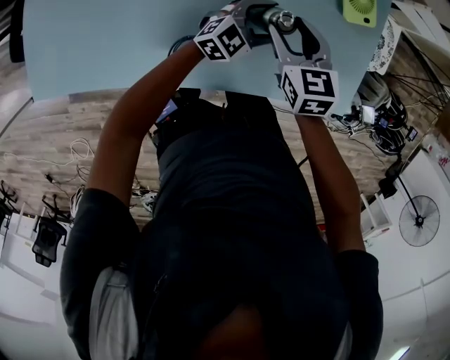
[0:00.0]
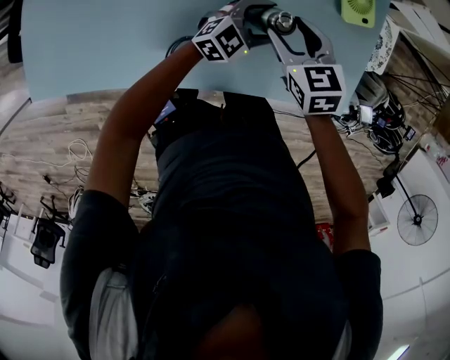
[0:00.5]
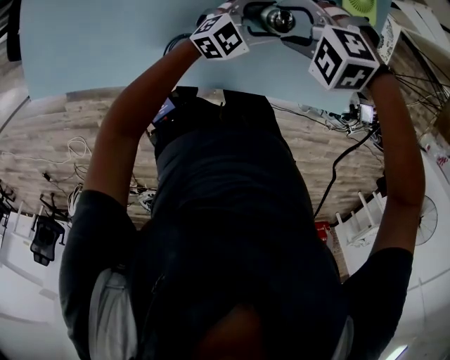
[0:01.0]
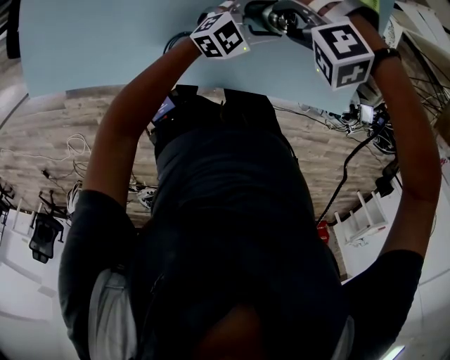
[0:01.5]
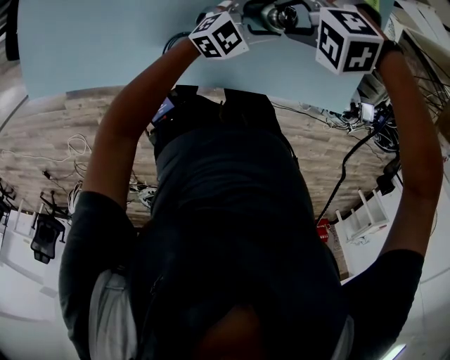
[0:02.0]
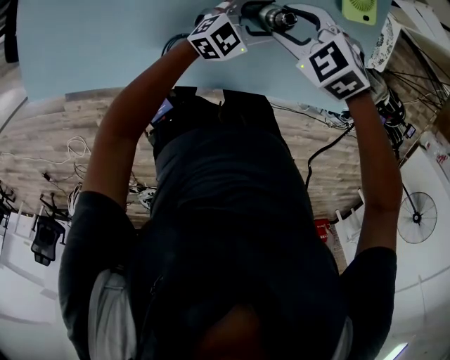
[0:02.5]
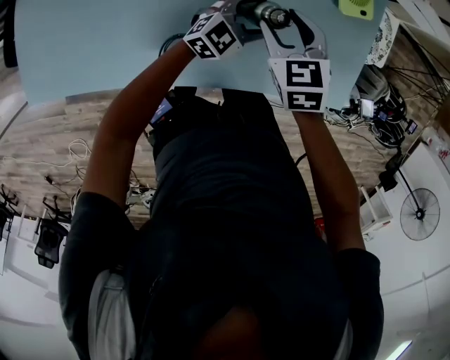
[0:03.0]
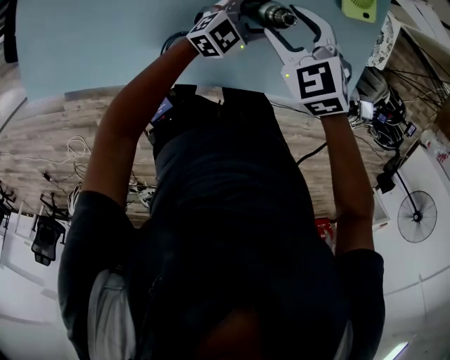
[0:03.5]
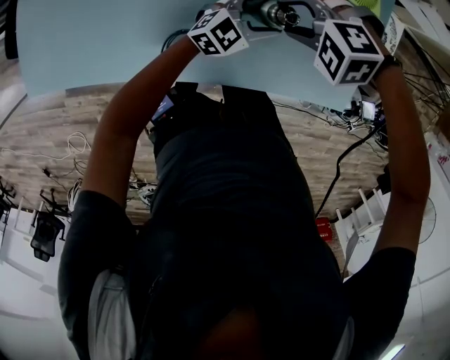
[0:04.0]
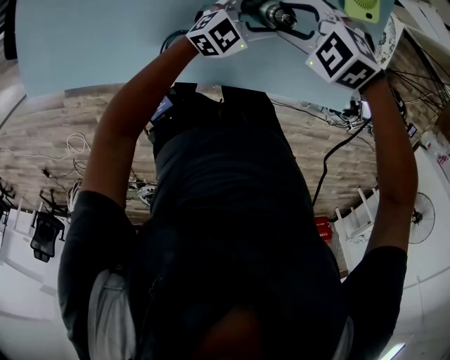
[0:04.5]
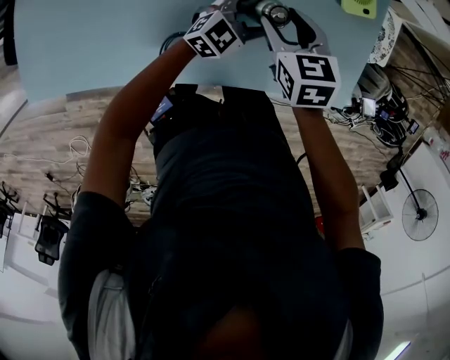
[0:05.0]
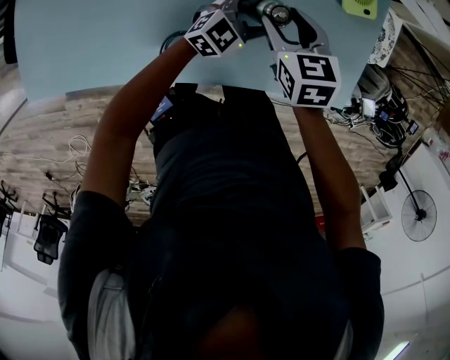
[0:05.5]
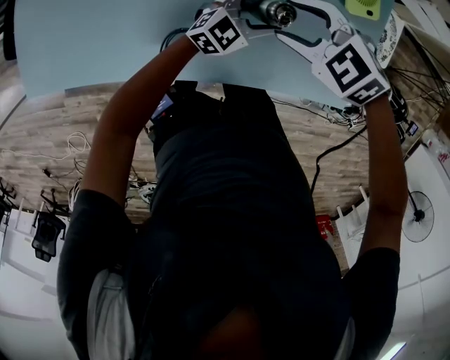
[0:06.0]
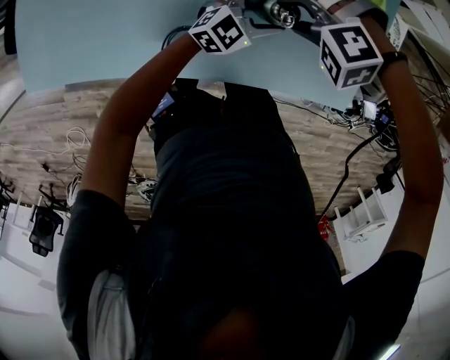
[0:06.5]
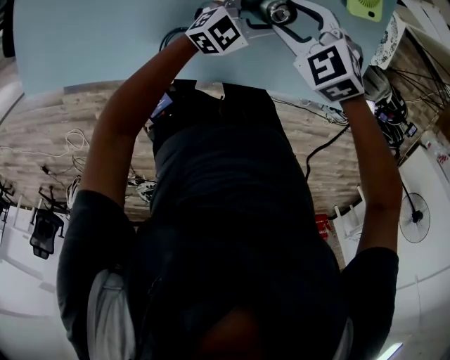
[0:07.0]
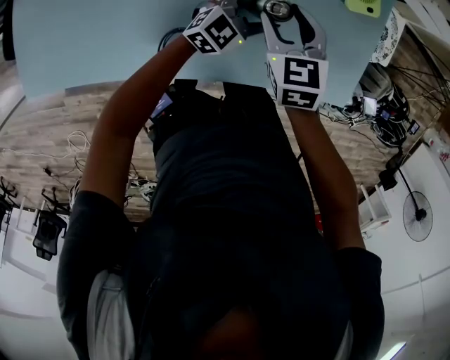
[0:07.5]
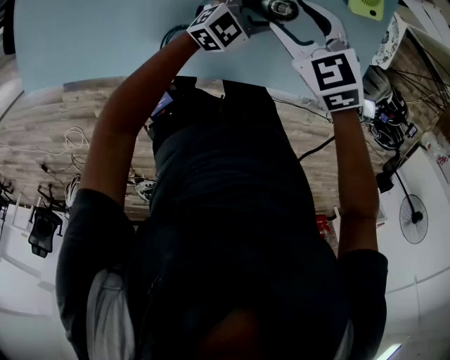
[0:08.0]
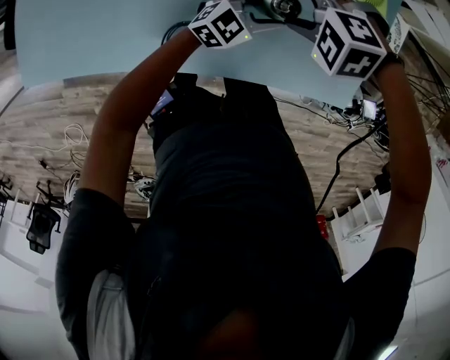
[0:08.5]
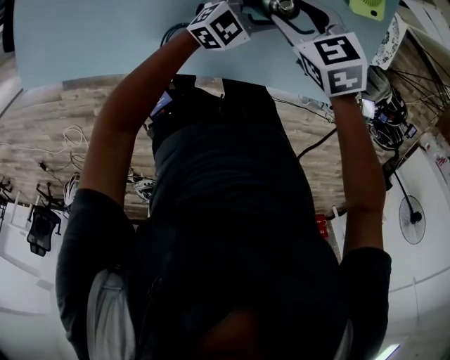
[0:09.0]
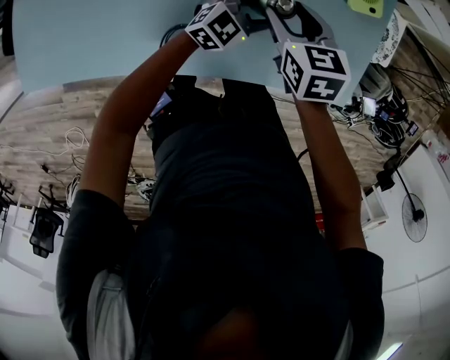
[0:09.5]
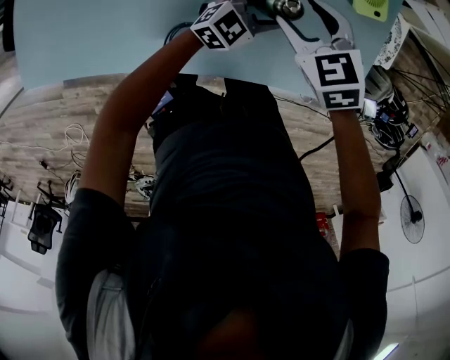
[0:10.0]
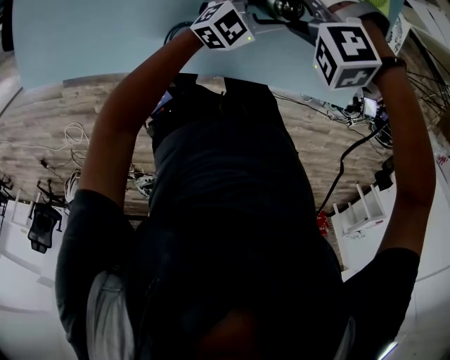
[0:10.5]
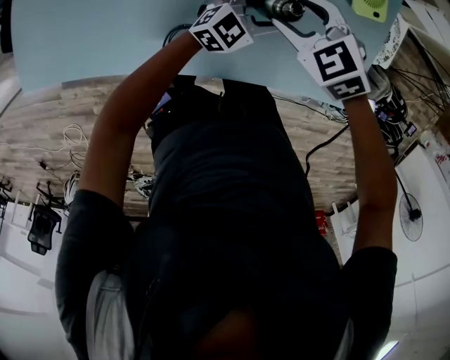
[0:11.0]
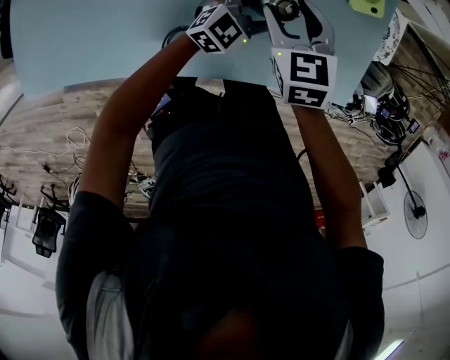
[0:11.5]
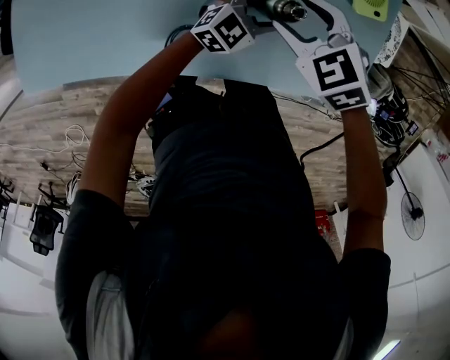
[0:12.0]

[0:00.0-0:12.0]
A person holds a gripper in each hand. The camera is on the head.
0:00.0 to 0:02.0: The right gripper points its fingers approximately 30 degrees further downward.
0:04.0 to 0:06.0: The right gripper changes its angle by approximately 40 degrees.
0:06.0 to 0:08.0: The right gripper turns by roughly 30 degrees.

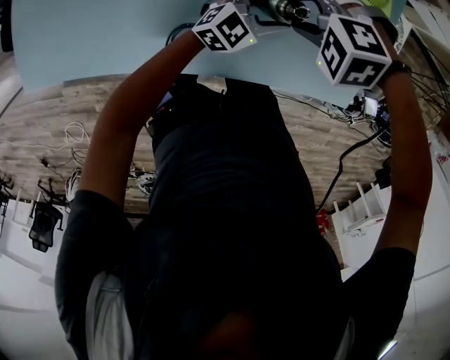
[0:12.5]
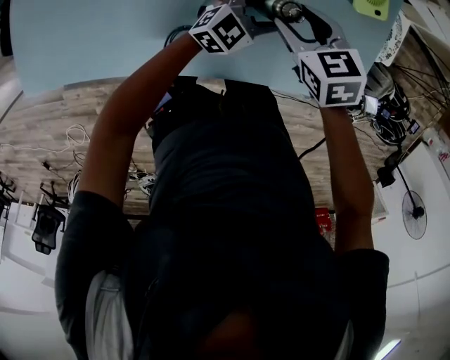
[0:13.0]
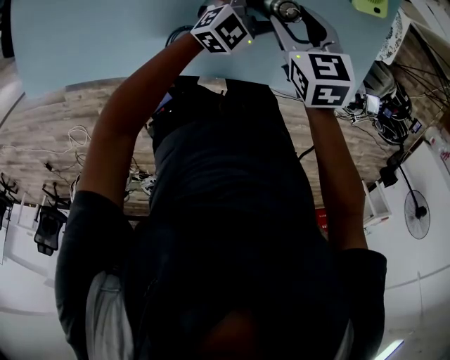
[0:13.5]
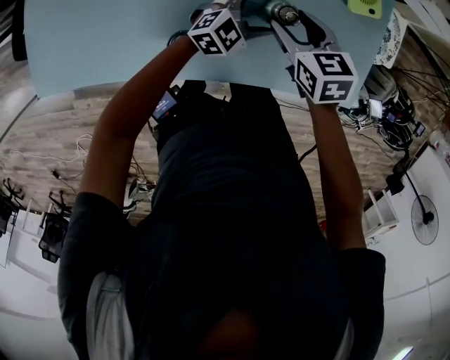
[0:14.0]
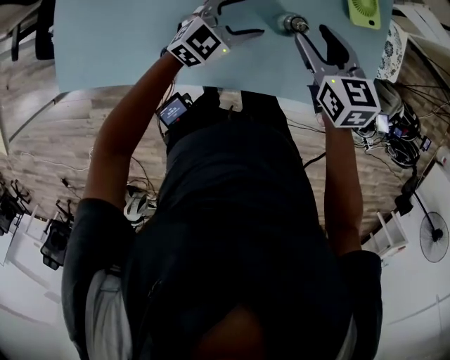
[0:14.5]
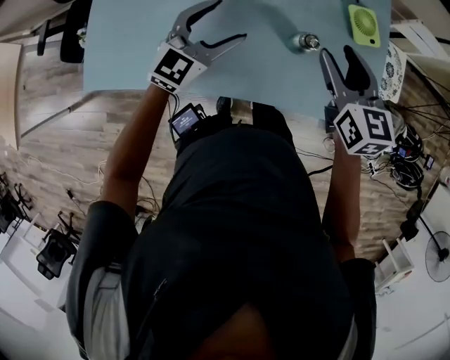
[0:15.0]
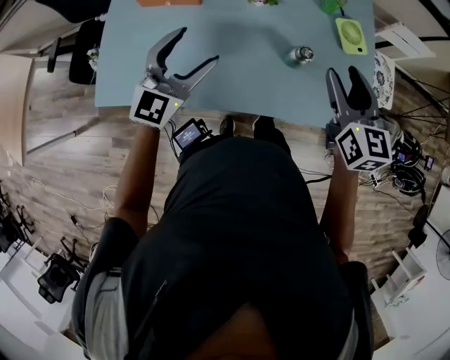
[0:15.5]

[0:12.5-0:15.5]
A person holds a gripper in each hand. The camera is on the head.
0:12.5 to 0:14.0: The right gripper twists about 70 degrees clockwise, seen from behind.
0:14.0 to 0:15.5: The left gripper shifts approximately 40 cm upward, to the left and backward, and changes its angle by some 40 degrees, while the right gripper moves upward, approximately 25 cm, and swivels approximately 30 degrees.

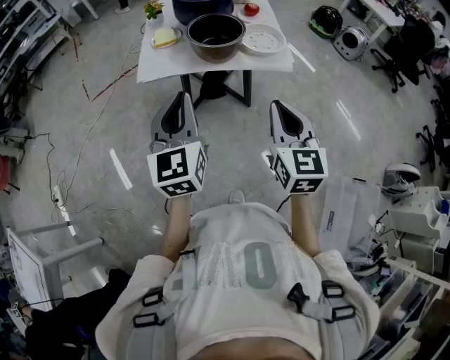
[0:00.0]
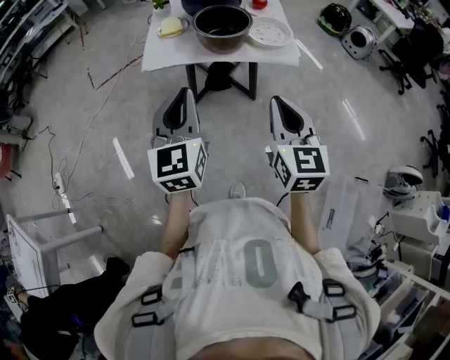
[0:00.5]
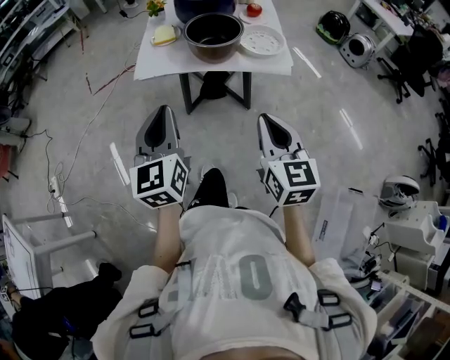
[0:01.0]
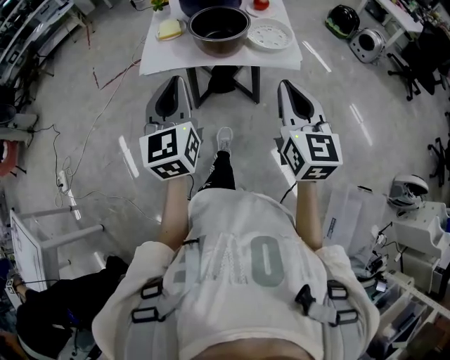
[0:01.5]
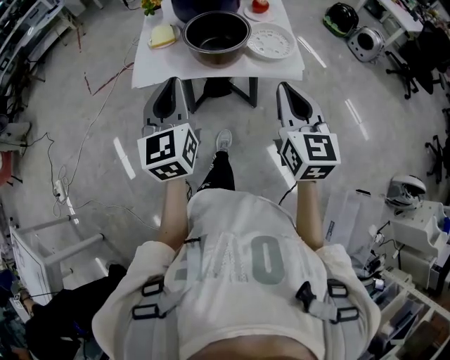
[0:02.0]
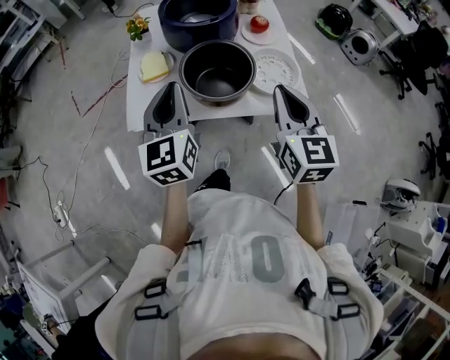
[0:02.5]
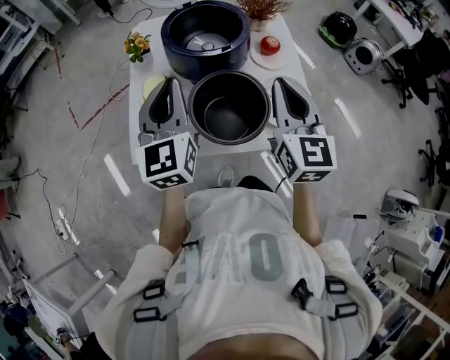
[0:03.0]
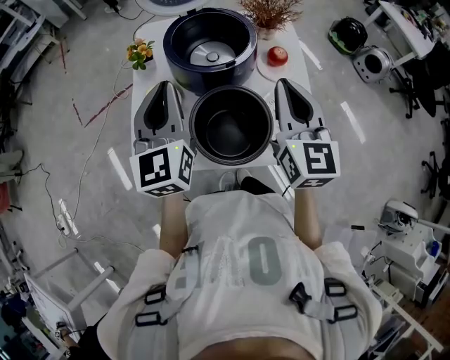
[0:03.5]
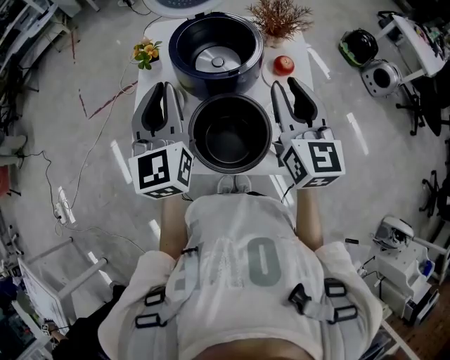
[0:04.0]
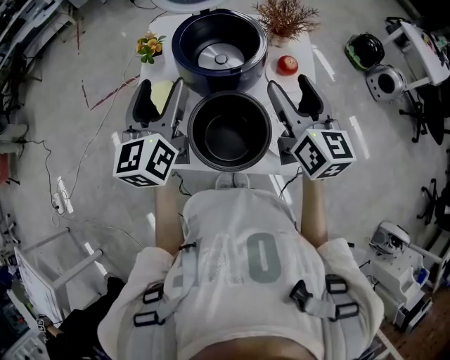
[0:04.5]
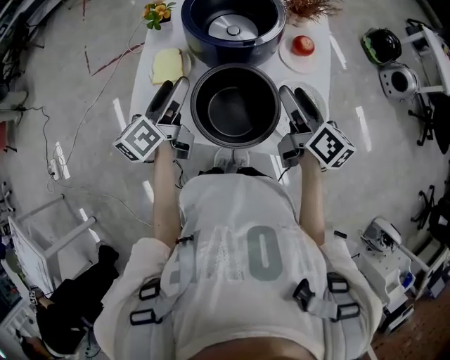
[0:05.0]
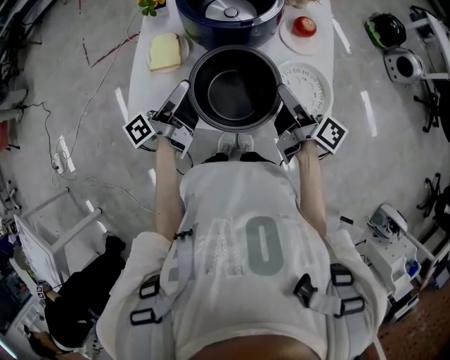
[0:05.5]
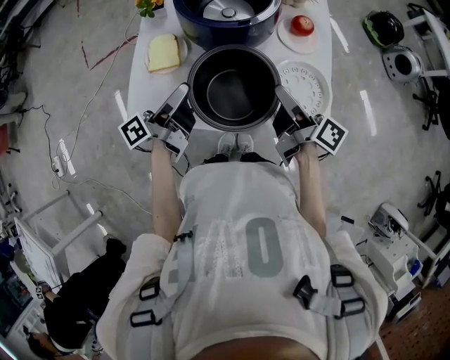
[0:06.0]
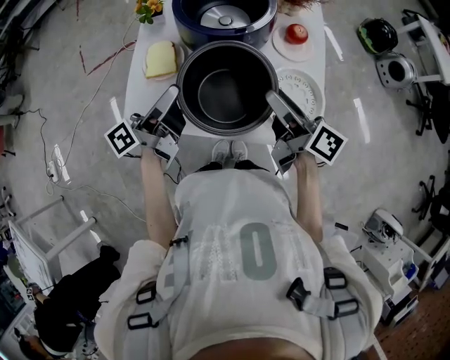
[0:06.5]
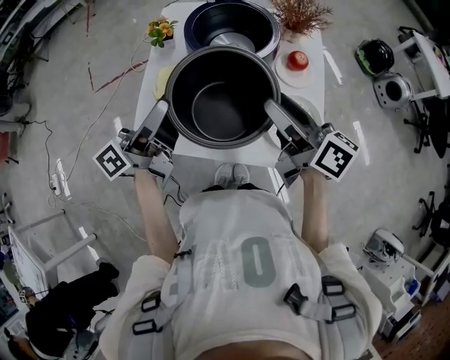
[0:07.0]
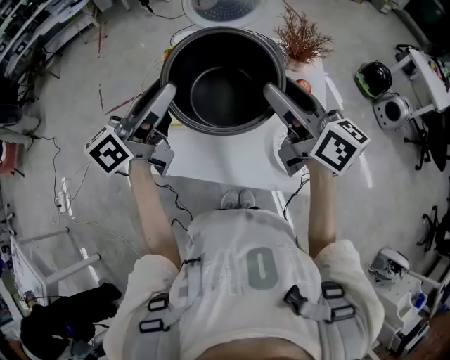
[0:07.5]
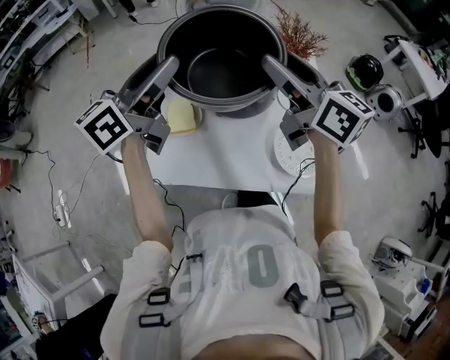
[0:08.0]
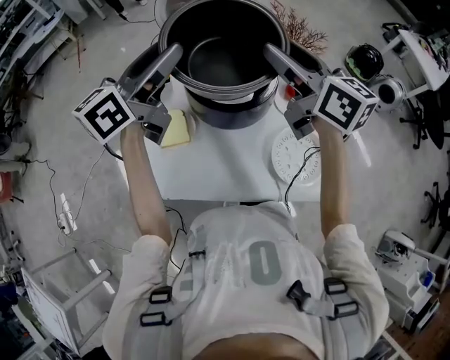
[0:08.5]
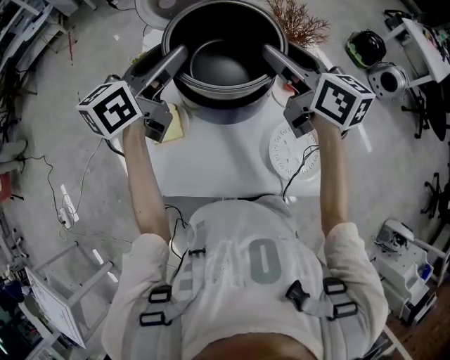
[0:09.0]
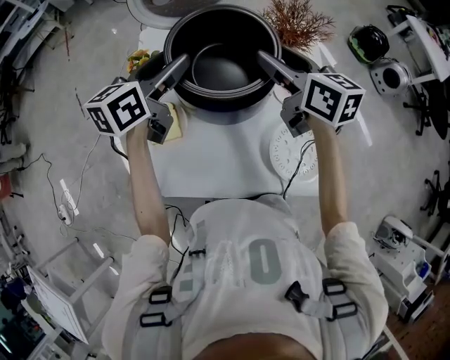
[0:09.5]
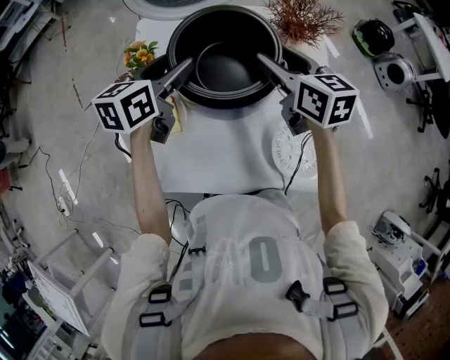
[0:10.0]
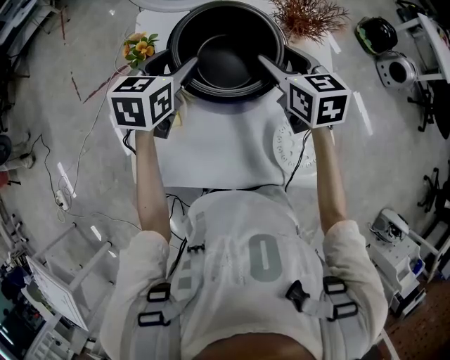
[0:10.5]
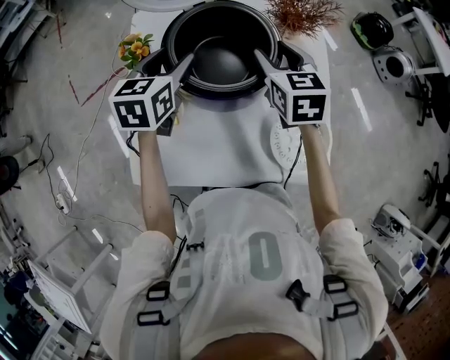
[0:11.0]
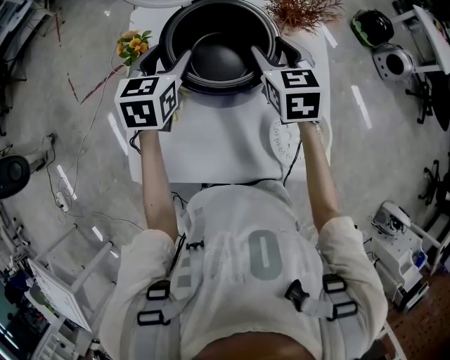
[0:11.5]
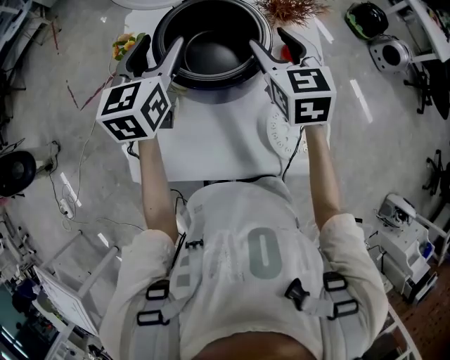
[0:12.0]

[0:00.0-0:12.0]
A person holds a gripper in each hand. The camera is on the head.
0:00.0 to 0:02.0: Both grippers move forward, approximately 15 cm.
0:02.0 to 0:04.0: Both grippers travel together forward, approximately 40 cm.
0:04.0 to 0:06.0: The grippers both shift downward by about 20 cm. The left gripper rolls counterclockwise, seen from behind, by some 80 degrees, and opens; the right gripper rolls clockwise, seen from behind, by about 70 degrees, and opens up.
0:06.0 to 0:08.0: The left gripper shifts some 30 cm upward, and rotates around the line of its fingers by approximately 50 degrees, clockwise from behind. The right gripper moves upward and forward, roughly 30 cm, and rolls counterclockwise, seen from behind, by roughly 50 degrees.
0:08.0 to 0:10.0: The two grippers go some 25 cm downward and forward. The right gripper rotates approximately 30 degrees. The left gripper angles its fingers downward, by approximately 30 degrees.
0:10.0 to 0:12.0: The right gripper rotates about 30 degrees. Meanwhile the left gripper swivels about 20 degrees.
